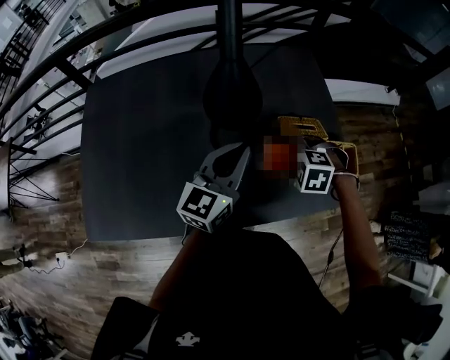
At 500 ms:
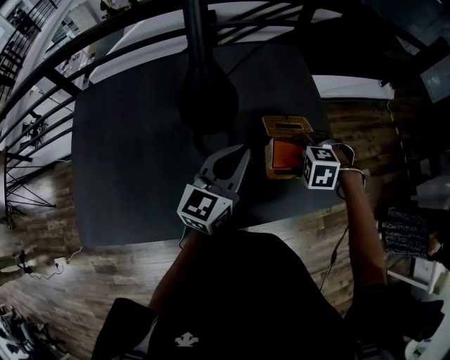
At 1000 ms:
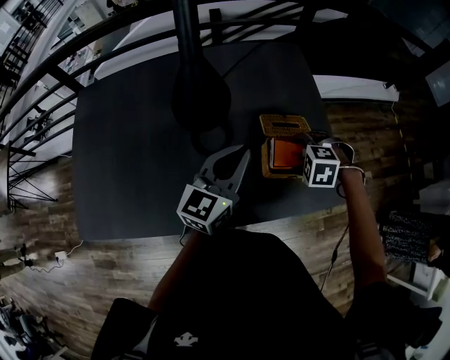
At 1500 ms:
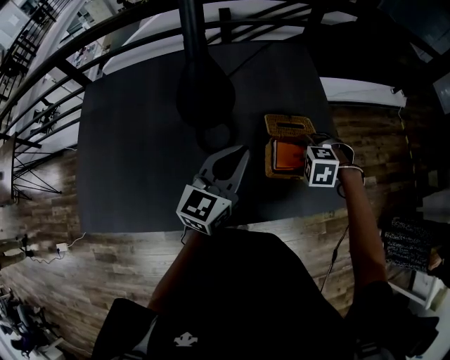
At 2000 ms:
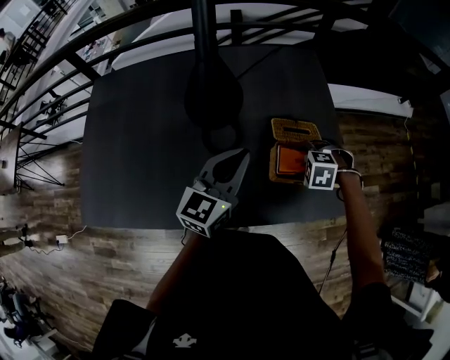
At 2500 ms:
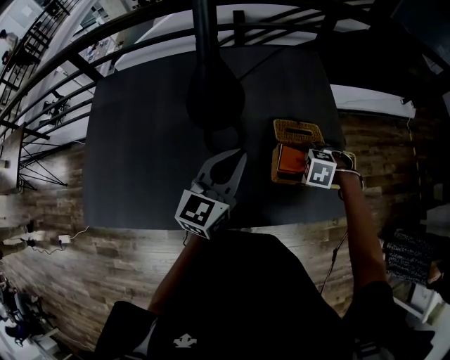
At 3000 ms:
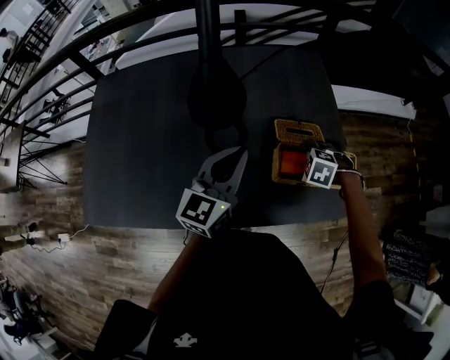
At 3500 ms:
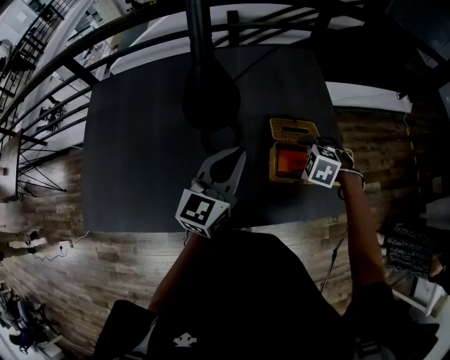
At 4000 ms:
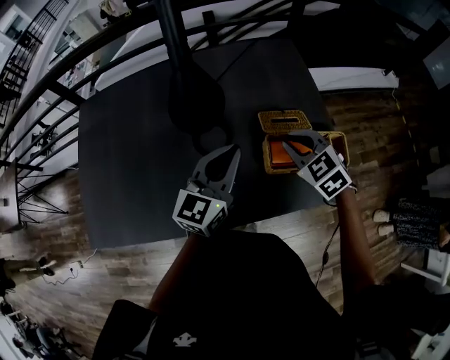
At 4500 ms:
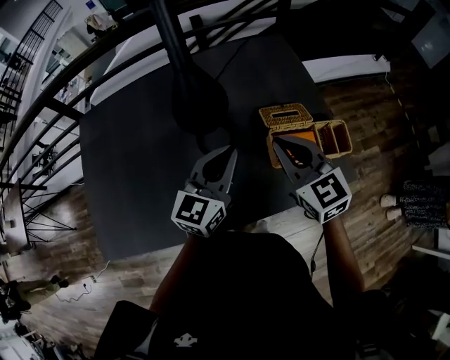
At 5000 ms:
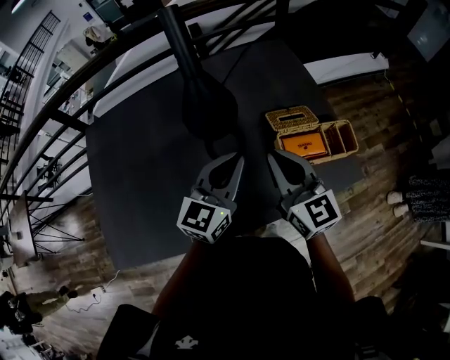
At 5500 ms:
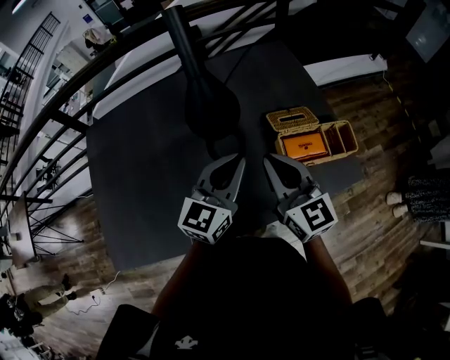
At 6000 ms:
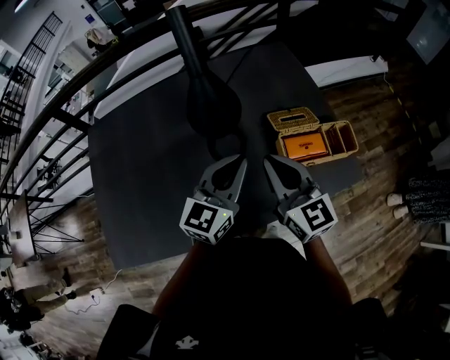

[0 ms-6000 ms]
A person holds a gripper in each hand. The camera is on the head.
0 ms to 2000 ms: The left gripper moves some 5 cm, while the right gripper moves some 15 cm.
2000 ms to 4000 ms: The right gripper travels upward by about 15 cm, tips its fingers upward by approximately 40 degrees, and closes its fingers.
4000 ms to 6000 ms: The left gripper shifts by approximately 5 cm, while the right gripper shifts approximately 15 cm upward, to the left and backward, and tilts its fingers about 40 degrees upward.

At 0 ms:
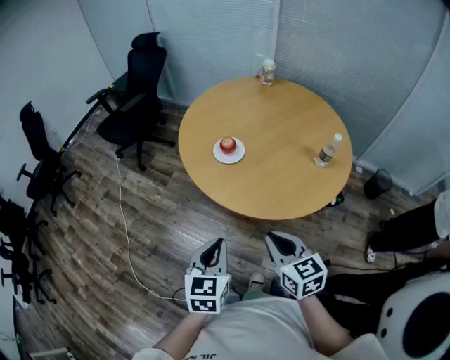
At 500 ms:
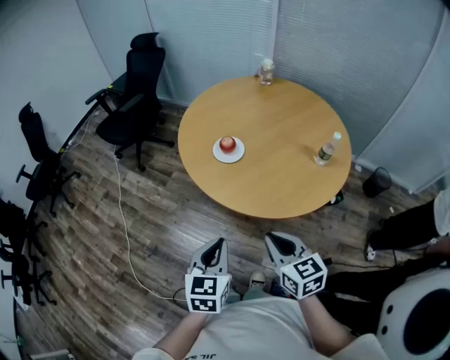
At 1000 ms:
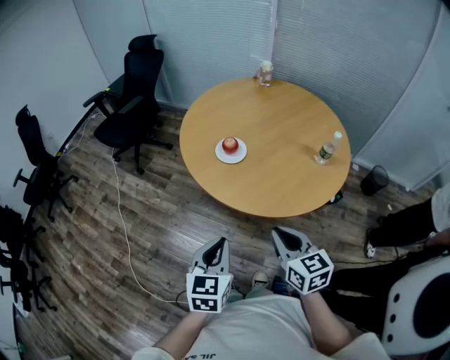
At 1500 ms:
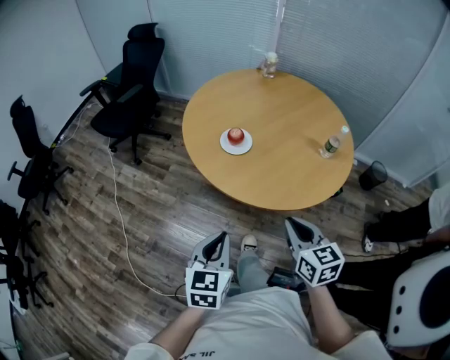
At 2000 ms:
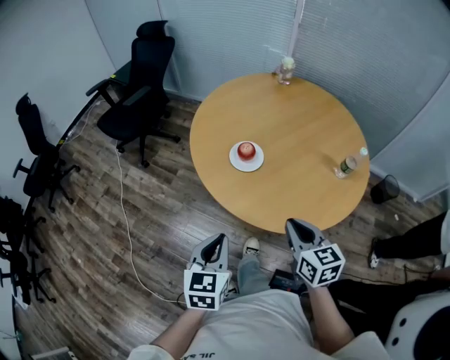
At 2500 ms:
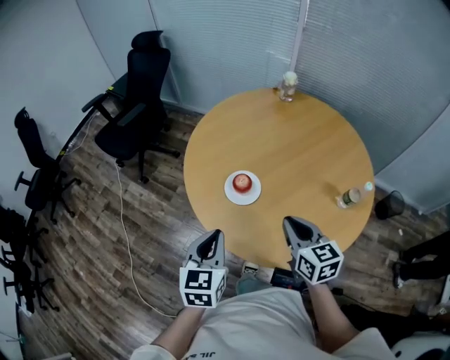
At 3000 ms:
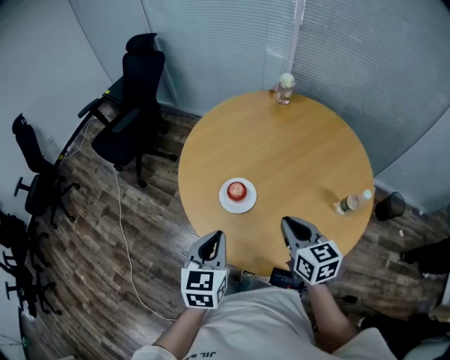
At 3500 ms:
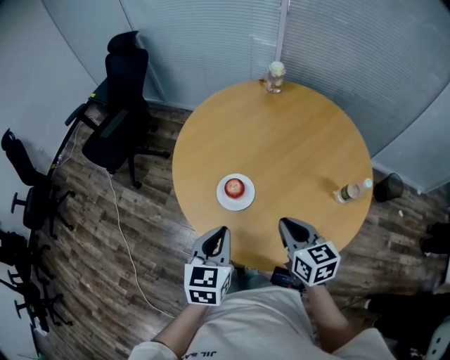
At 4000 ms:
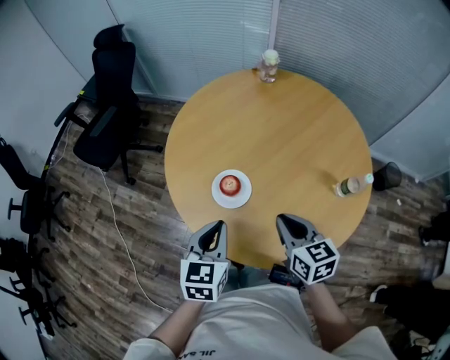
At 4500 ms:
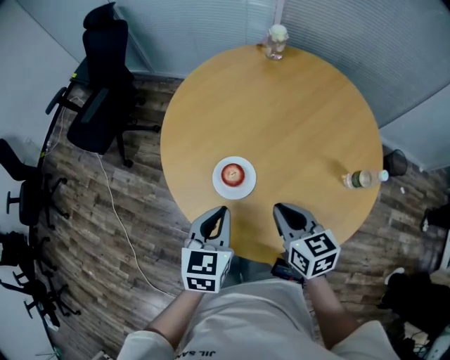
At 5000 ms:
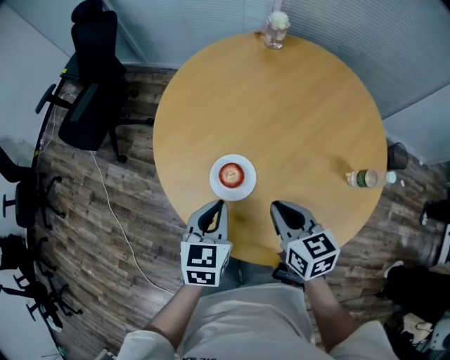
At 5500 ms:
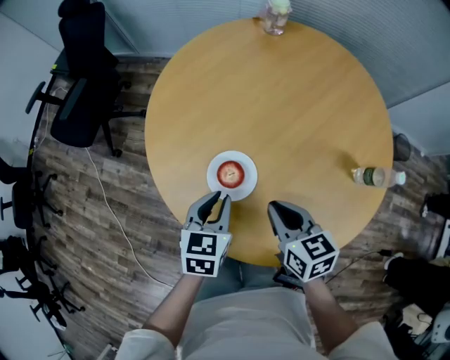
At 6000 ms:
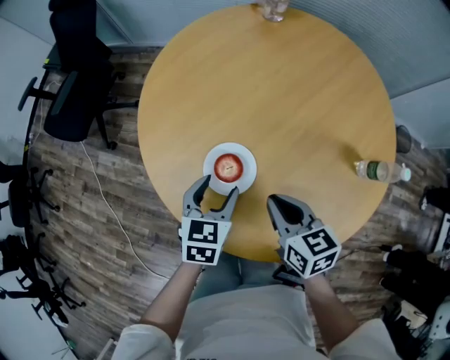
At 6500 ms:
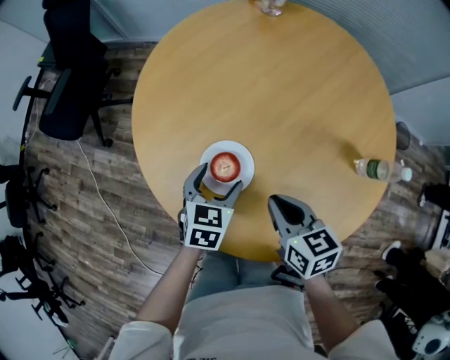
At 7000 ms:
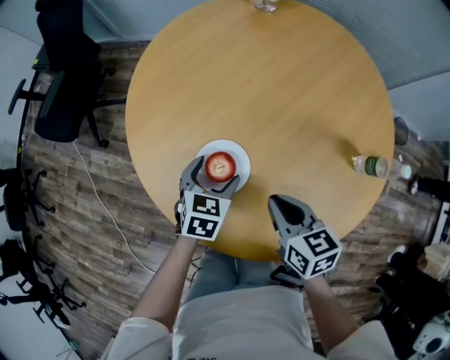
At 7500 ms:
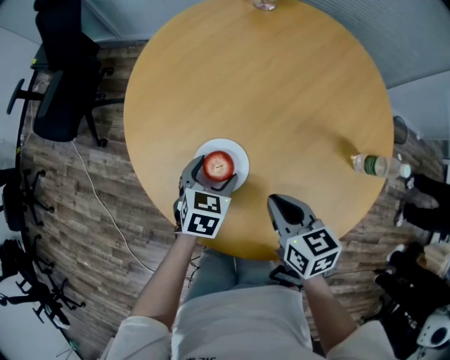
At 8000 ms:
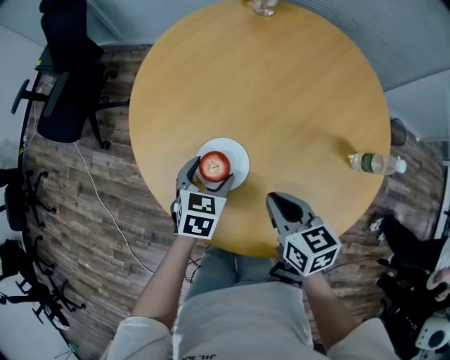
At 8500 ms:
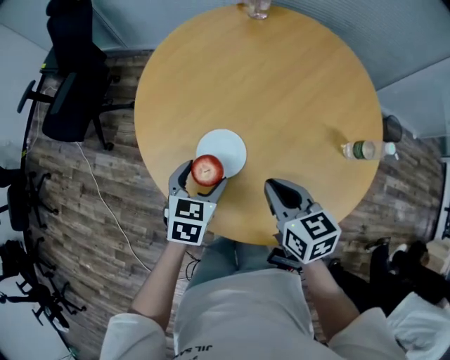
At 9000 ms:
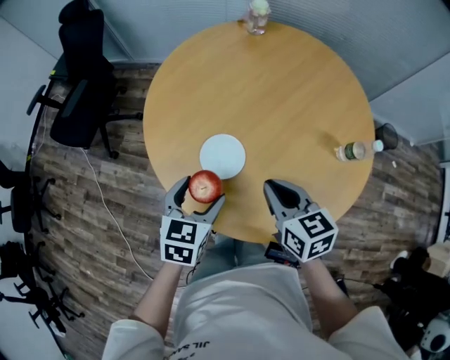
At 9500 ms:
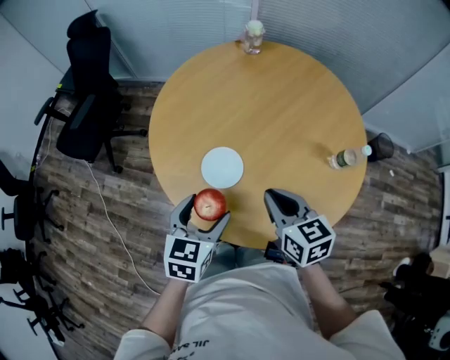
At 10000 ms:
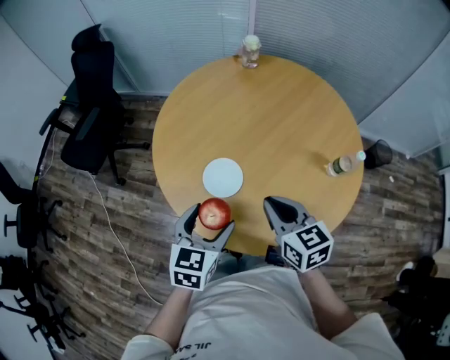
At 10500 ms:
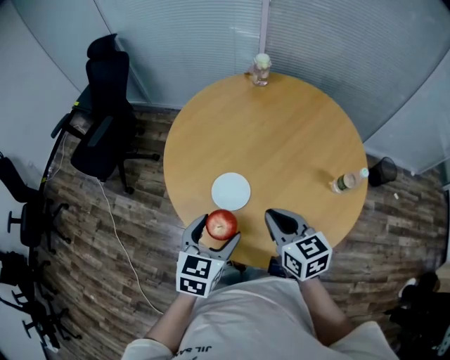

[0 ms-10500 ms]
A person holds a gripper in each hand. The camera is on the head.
0 ms to 2000 ms: The right gripper goes some 10 cm forward, while the left gripper shifts about 10 cm forward and to the left.
2000 ms to 4000 ms: The two grippers go some 20 cm forward.
4000 ms to 6500 ms: The left gripper goes approximately 20 cm downward and forward, and opens its fingers, while the right gripper shifts approximately 10 cm downward and forward.
6500 ms to 8500 ms: The left gripper shifts by some 5 cm, while the right gripper ends up about 5 cm from where it was.
8500 ms to 10500 ms: The left gripper moves upward and backward, some 15 cm, while the right gripper goes about 10 cm upward.

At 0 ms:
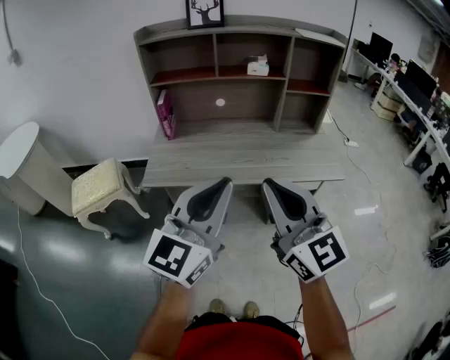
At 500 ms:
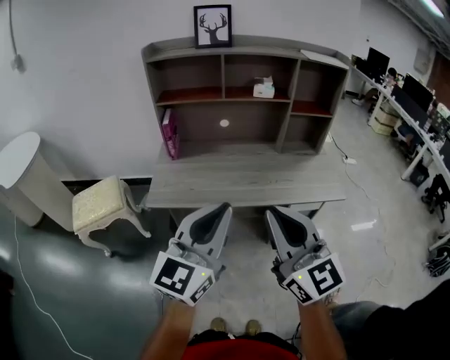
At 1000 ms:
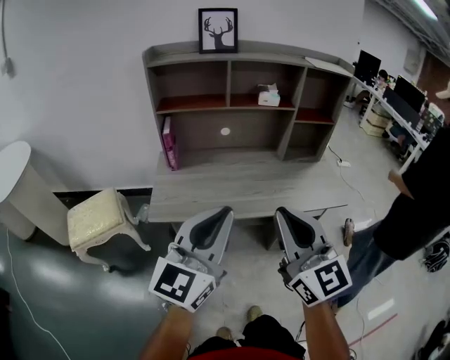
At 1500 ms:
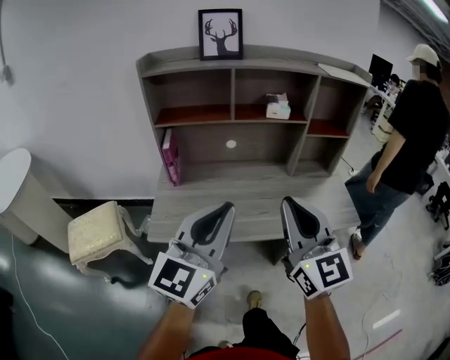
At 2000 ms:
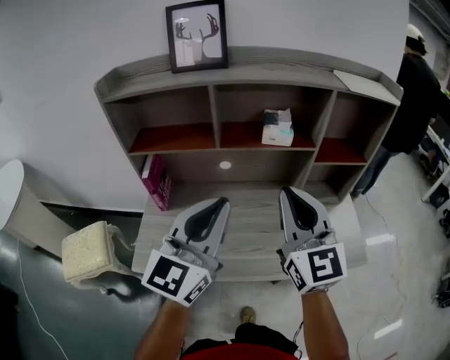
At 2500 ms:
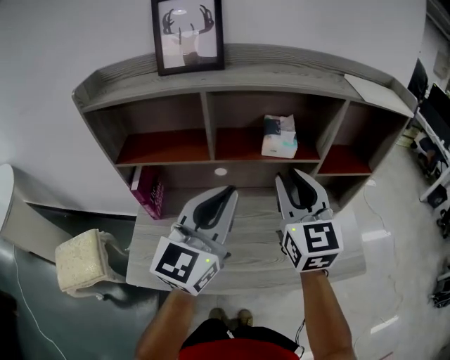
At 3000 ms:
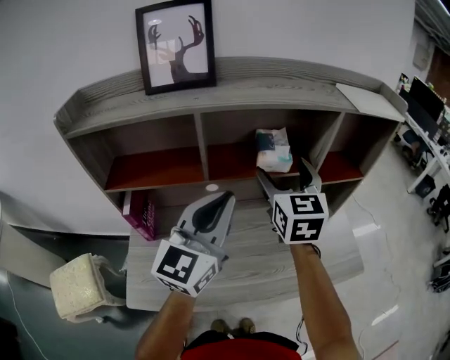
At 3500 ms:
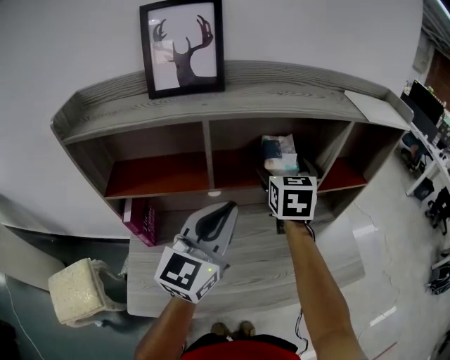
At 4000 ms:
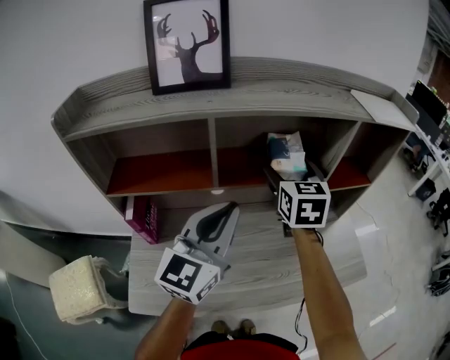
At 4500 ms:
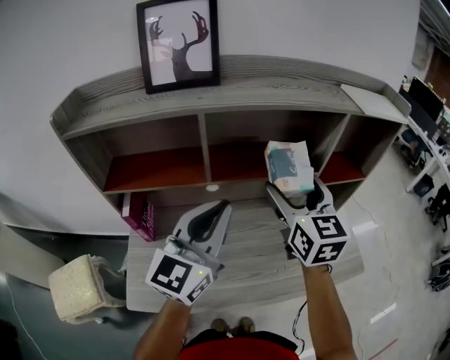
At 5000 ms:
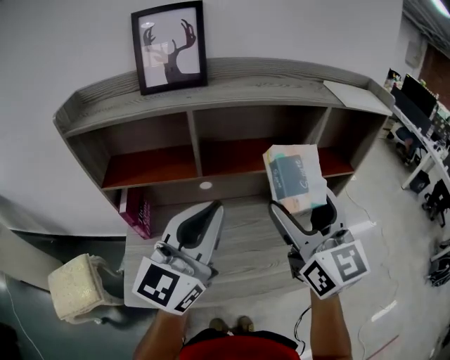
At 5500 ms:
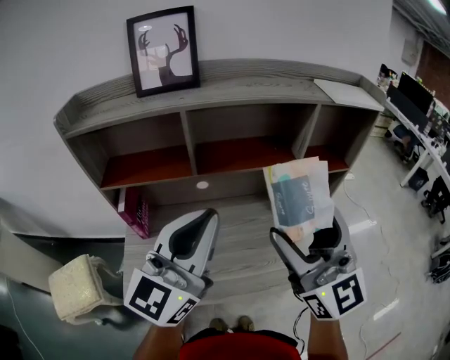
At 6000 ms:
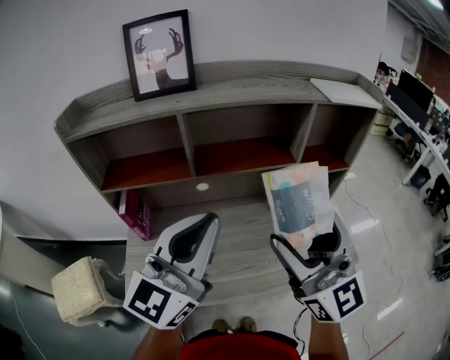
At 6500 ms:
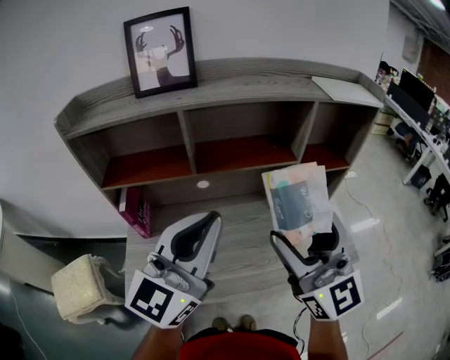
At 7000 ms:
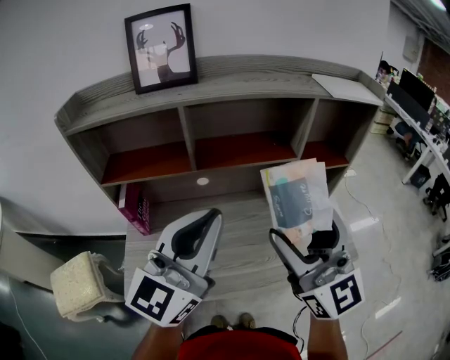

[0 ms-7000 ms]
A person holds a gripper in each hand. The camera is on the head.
0 ms to 2000 ms: The grippers both shift forward by approximately 35 cm.
2000 ms to 3500 ms: The right gripper goes some 25 cm forward, rotates approximately 40 degrees, and opens, while the left gripper is displaced forward by some 15 cm.
3500 ms to 5000 ms: The left gripper shifts roughly 10 cm backward and upward. The right gripper moves backward and upward, approximately 20 cm, and swivels roughly 30 degrees.
5000 ms to 7000 ms: The left gripper shifts by roughly 5 cm, while the right gripper goes about 10 cm backward.

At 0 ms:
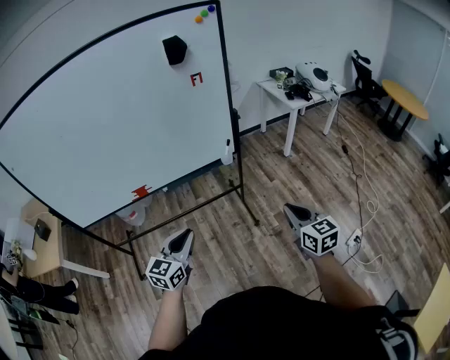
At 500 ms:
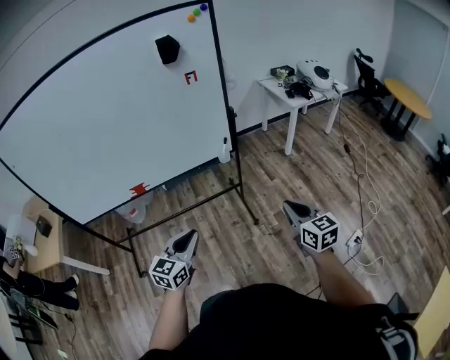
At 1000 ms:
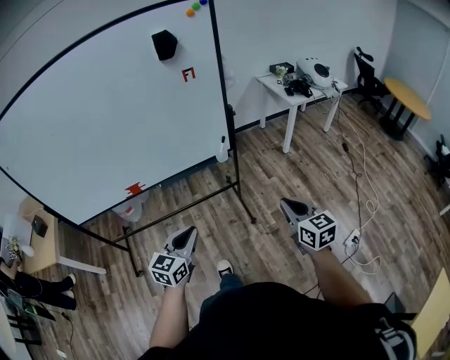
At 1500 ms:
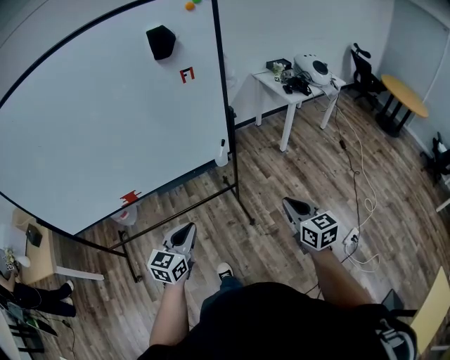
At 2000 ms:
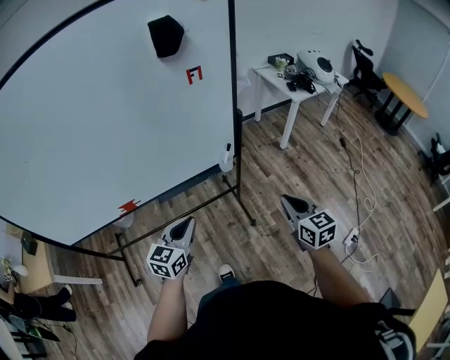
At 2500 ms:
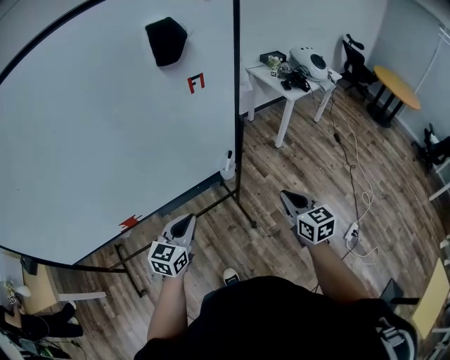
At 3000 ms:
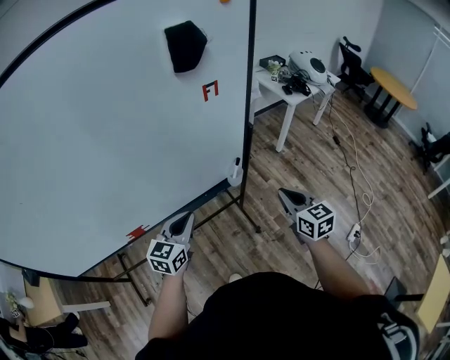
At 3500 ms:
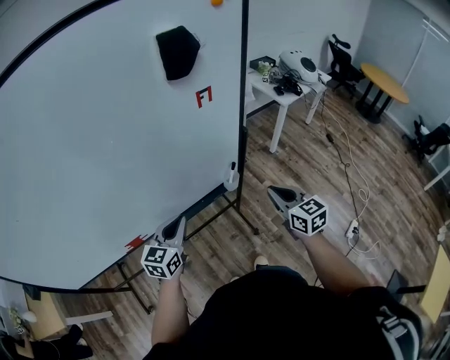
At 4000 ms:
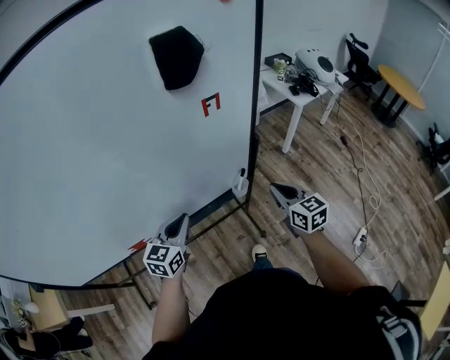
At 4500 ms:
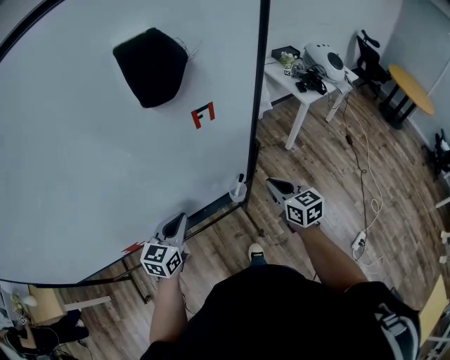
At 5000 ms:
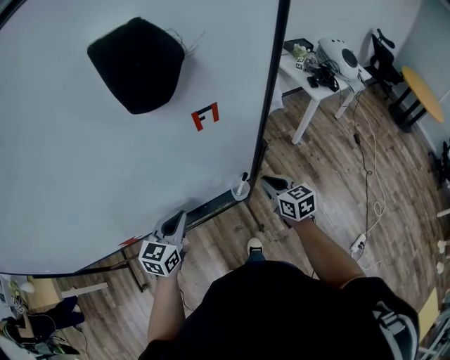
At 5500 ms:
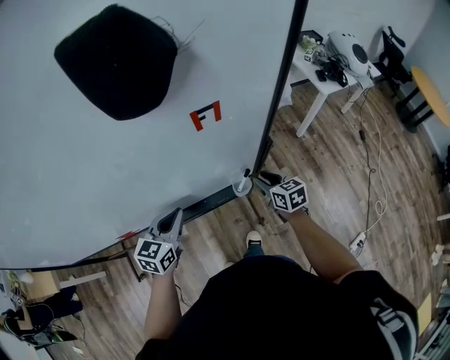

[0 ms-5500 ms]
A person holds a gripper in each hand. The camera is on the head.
0 ms to 2000 ms: Both grippers move forward, roughly 20 cm.
2000 ms to 3500 ms: The grippers both shift forward and to the left by about 15 cm.
3500 ms to 5500 ms: The right gripper moves forward and downward, roughly 30 cm, turns by approximately 20 degrees, and opens up; the left gripper shifts roughly 15 cm forward and downward.
